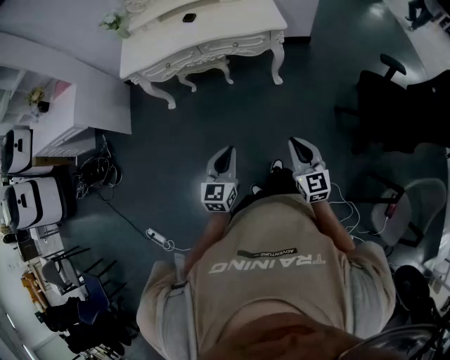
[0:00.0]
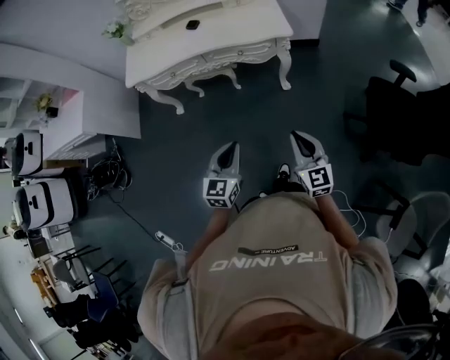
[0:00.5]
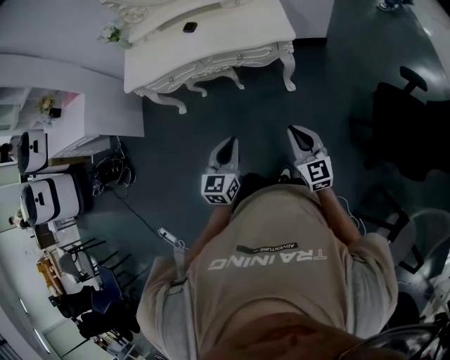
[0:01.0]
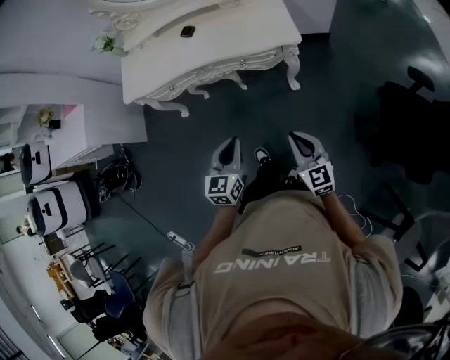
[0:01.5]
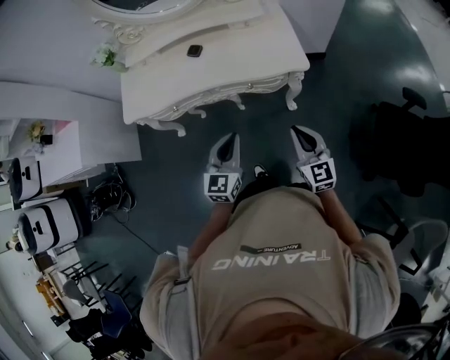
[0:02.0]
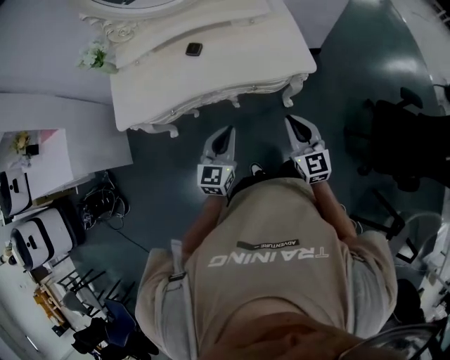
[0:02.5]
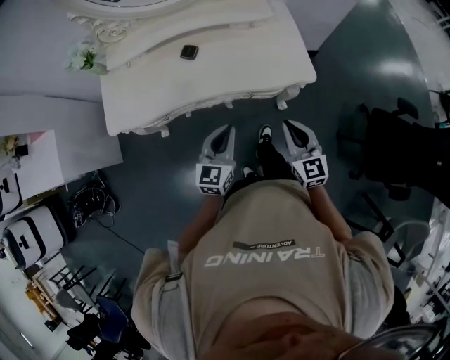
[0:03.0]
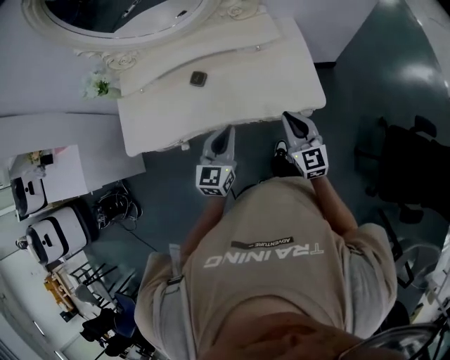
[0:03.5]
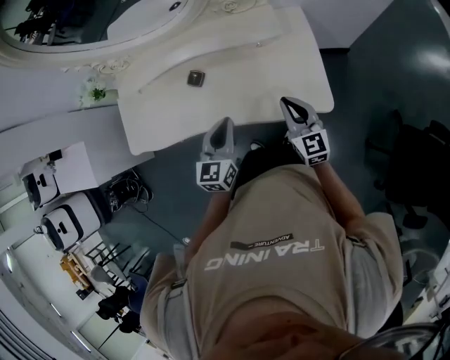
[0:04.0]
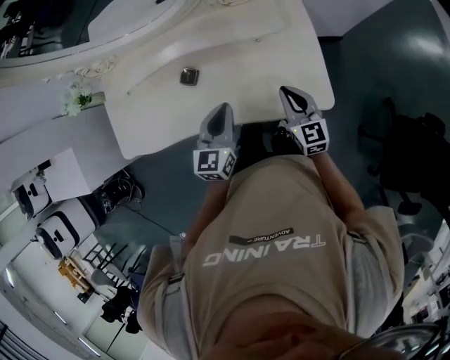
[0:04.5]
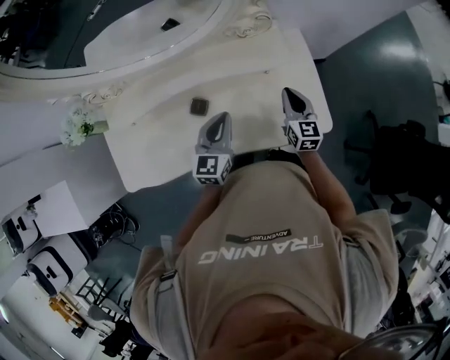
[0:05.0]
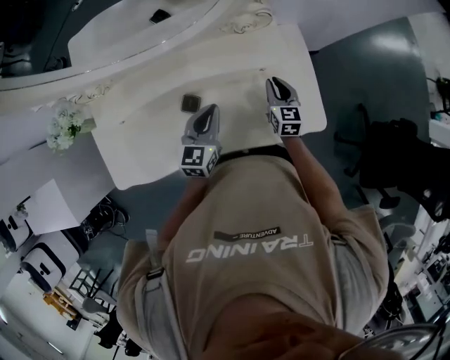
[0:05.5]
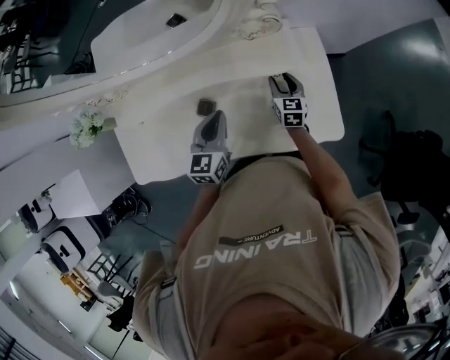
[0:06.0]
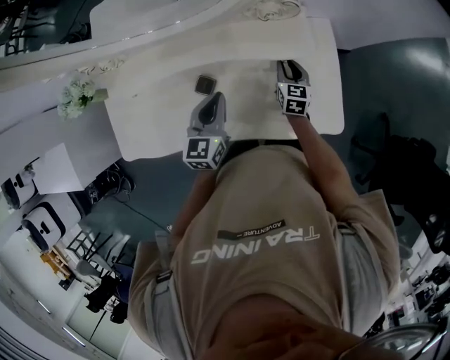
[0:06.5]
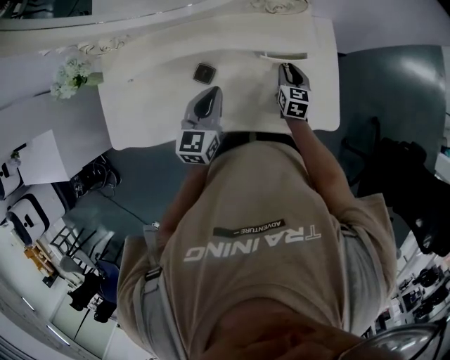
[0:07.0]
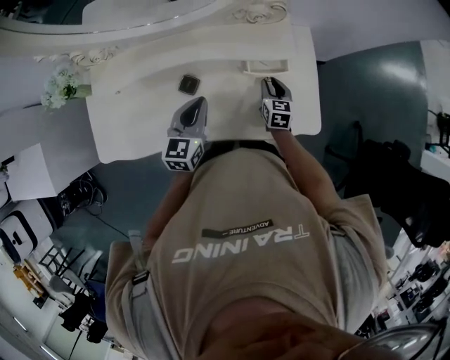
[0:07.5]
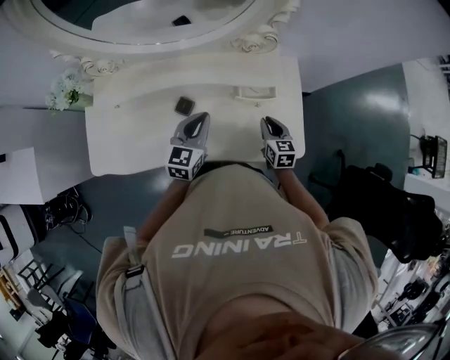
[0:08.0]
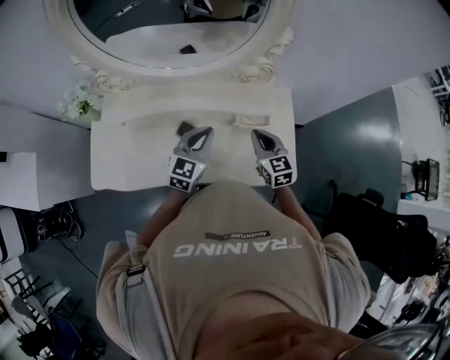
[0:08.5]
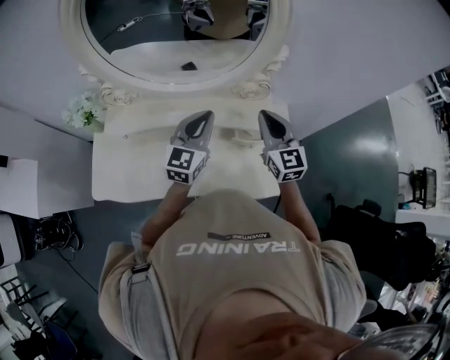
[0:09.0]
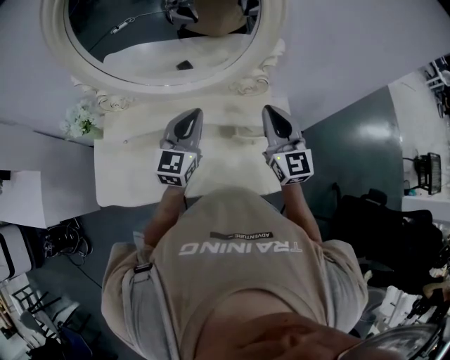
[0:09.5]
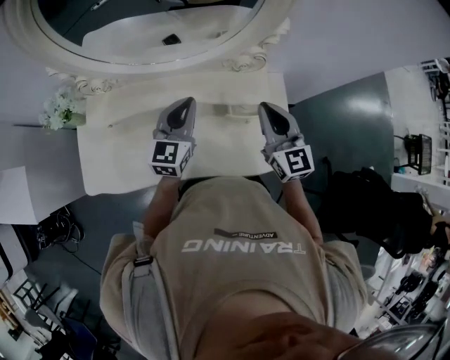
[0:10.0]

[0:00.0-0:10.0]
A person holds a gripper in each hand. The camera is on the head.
0:00.0 to 0:02.0: Both grippers move forward, some 40 cm.
0:02.0 to 0:04.0: The two grippers go about 35 cm forward.
0:04.0 to 0:06.0: The right gripper is displaced forward and downward by roughly 25 cm, turns by approximately 30 degrees, and opens its fingers, while the left gripper is displaced forward and to the left by approximately 20 cm.
0:06.0 to 0:08.0: The right gripper travels backward and upward by some 15 cm, and closes up. The left gripper shifts by about 5 cm.
0:08.0 to 0:10.0: The right gripper shifts roughly 25 cm upward, and turns by some 30 degrees, while the left gripper travels upward and forward by about 15 cm.

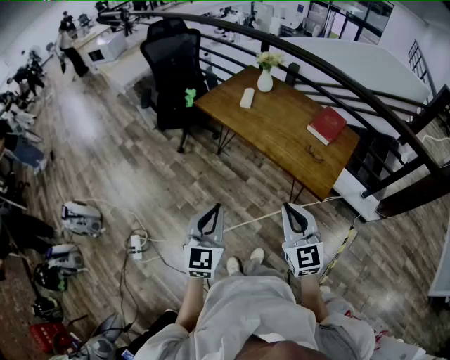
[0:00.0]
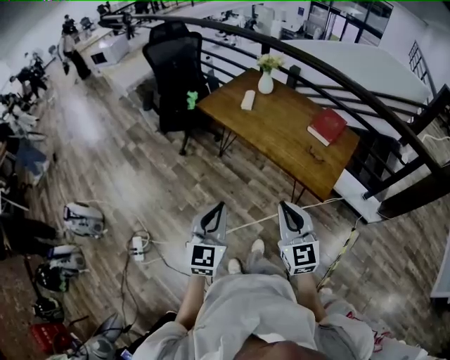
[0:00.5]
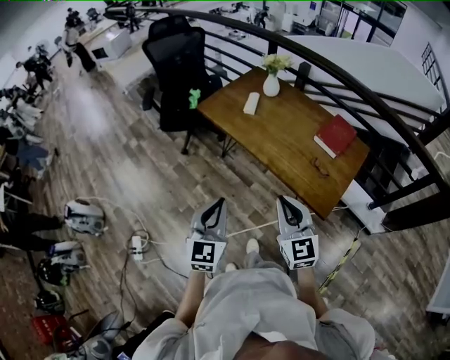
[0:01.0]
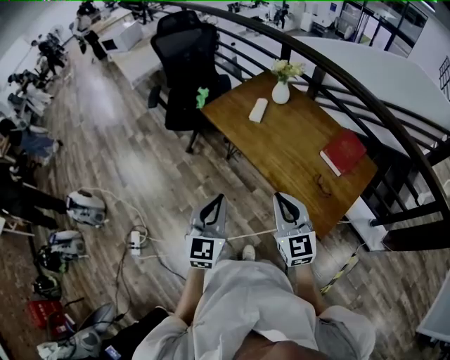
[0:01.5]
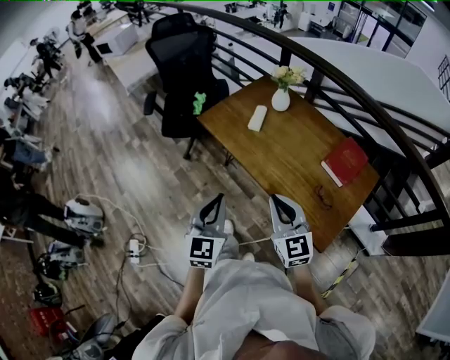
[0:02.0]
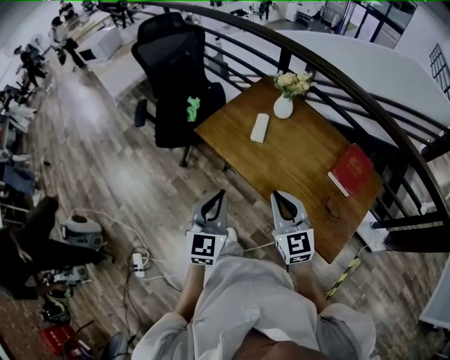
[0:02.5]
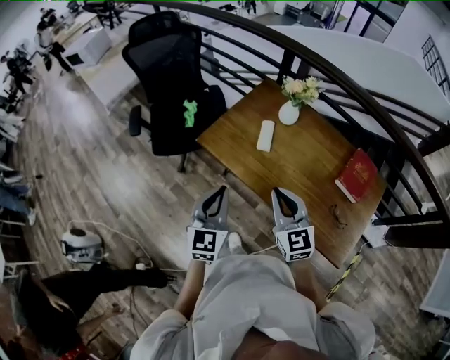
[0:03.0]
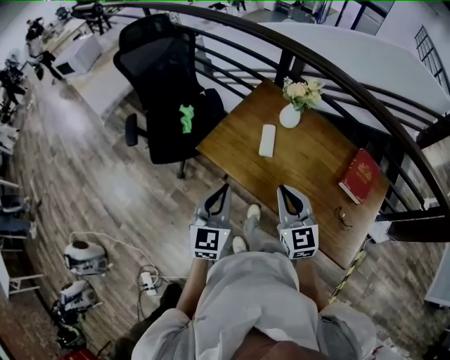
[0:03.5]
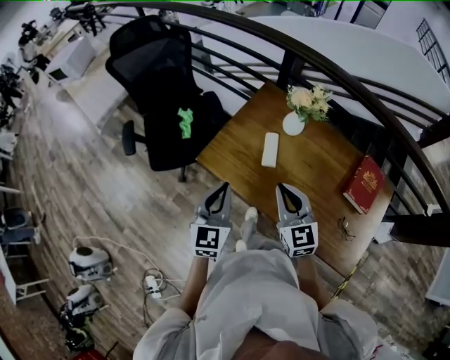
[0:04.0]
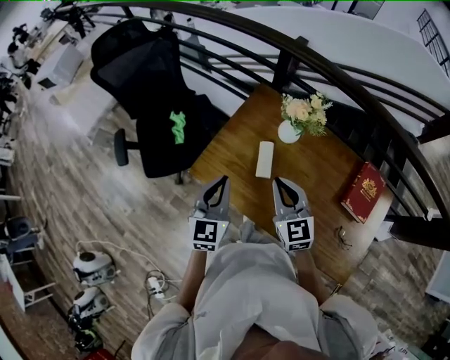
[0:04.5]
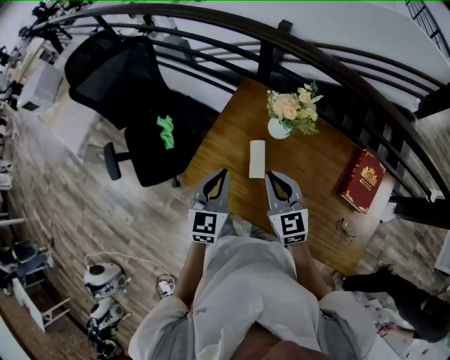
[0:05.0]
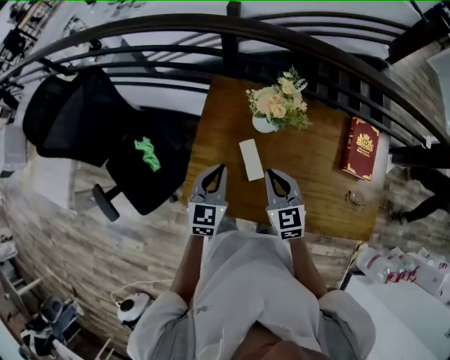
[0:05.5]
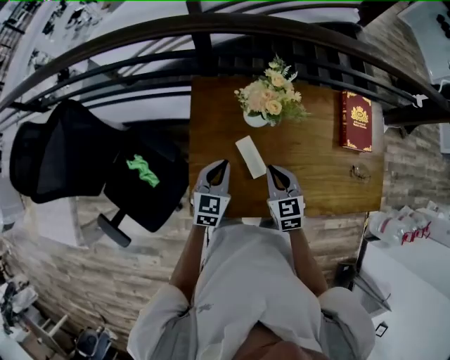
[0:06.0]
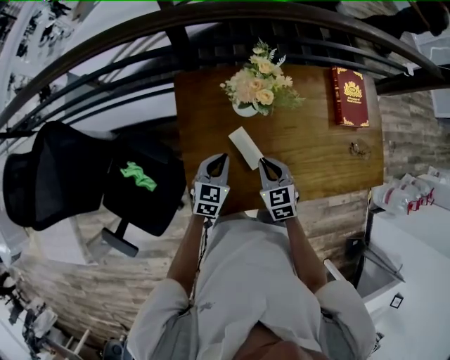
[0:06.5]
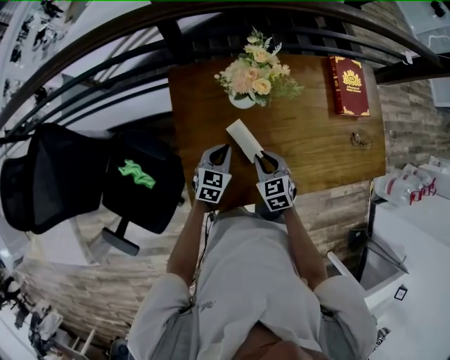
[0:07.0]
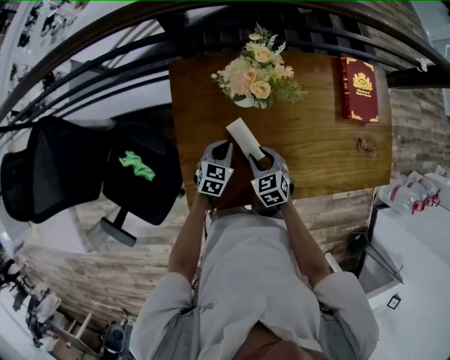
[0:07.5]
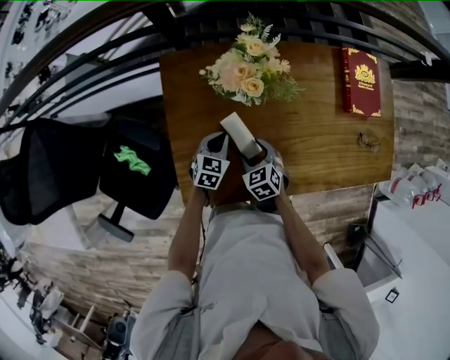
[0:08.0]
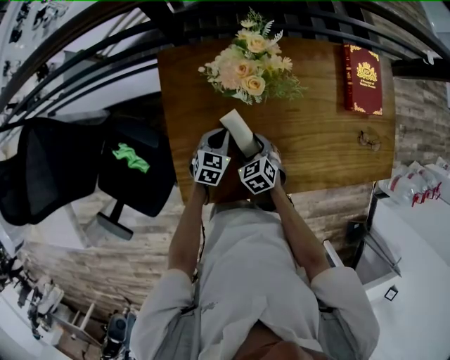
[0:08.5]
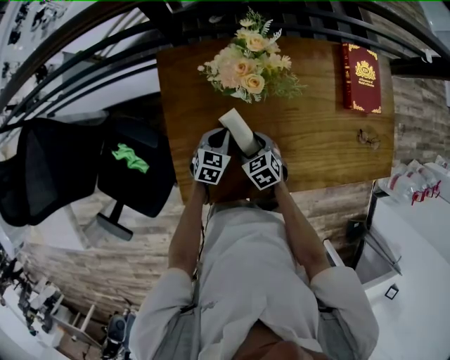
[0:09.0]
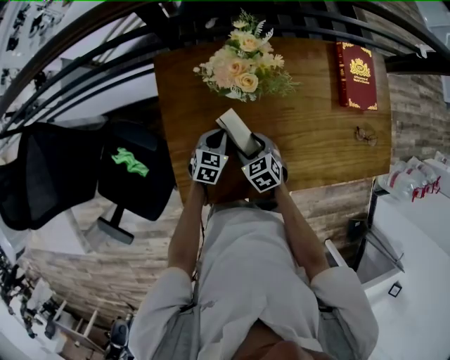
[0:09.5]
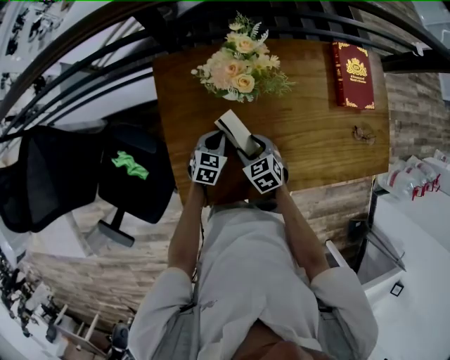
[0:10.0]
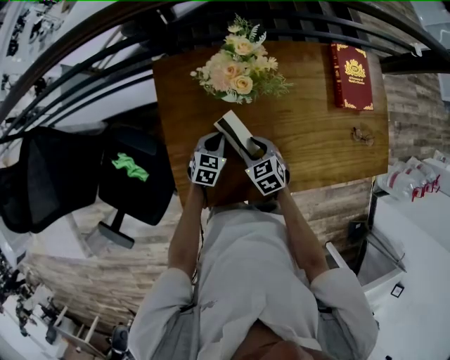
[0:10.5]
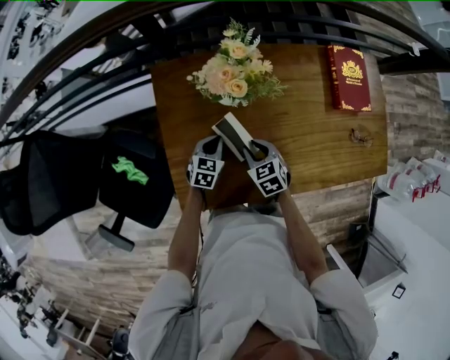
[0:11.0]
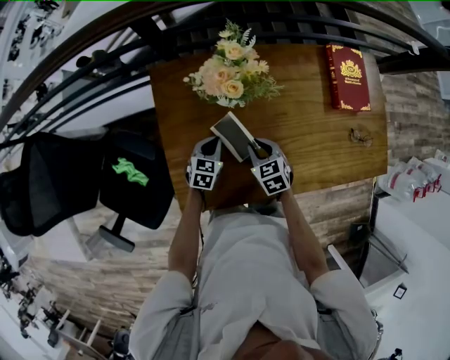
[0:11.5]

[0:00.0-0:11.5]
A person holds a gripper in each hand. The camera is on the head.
0:00.0 to 0:02.0: Both grippers travel together forward, about 25 cm.
0:02.0 to 0:04.0: The two grippers go about 30 cm forward.
0:04.0 to 0:06.0: The left gripper moves roughly 30 cm, and swivels approximately 40 degrees, while the right gripper ends up about 20 cm from where it was, and rotates approximately 40 degrees.
0:06.0 to 0:07.5: Both grippers move downward, approximately 15 cm. The right gripper opens its fingers.
0:07.5 to 0:09.5: The right gripper opens its fingers.
0:09.5 to 0:11.5: The right gripper moves approximately 5 cm, and closes up.

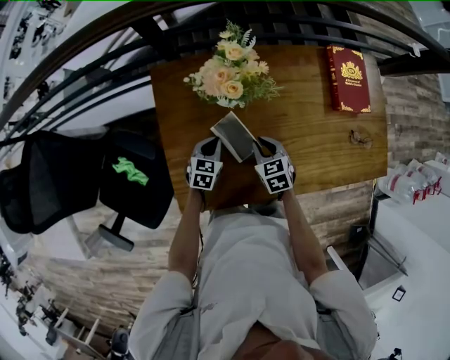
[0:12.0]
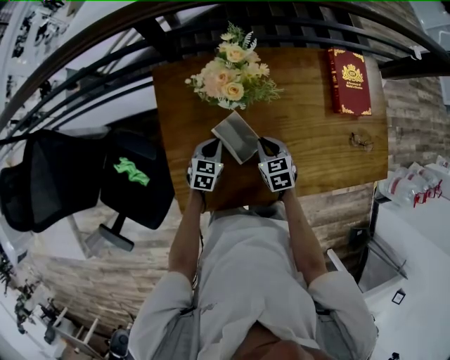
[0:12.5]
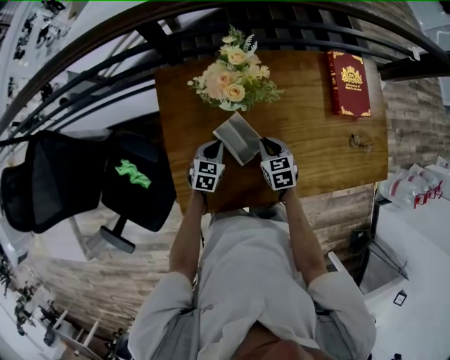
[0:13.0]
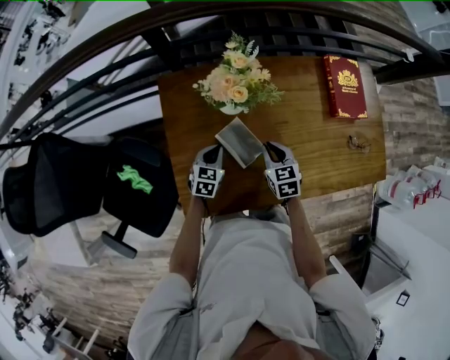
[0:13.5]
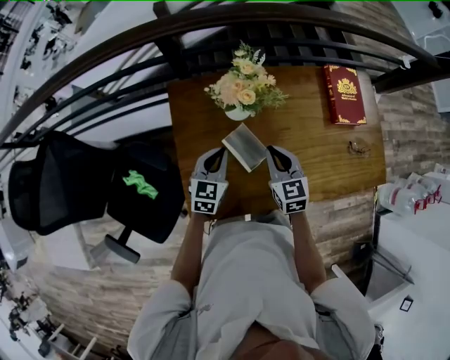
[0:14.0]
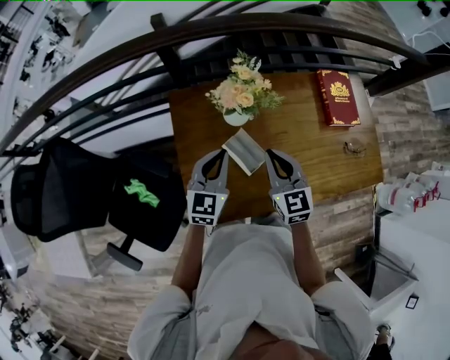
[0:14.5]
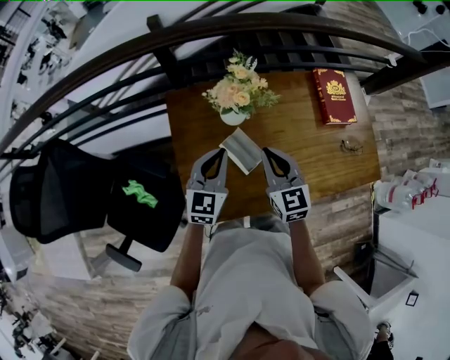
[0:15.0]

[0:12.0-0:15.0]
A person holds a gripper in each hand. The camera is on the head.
0:12.0 to 0:13.5: There are only small adjustments of the grippers.
0:13.5 to 0:15.0: Both grippers move upward, some 20 cm. The left gripper turns by some 30 degrees, while the right gripper swivels about 30 degrees.

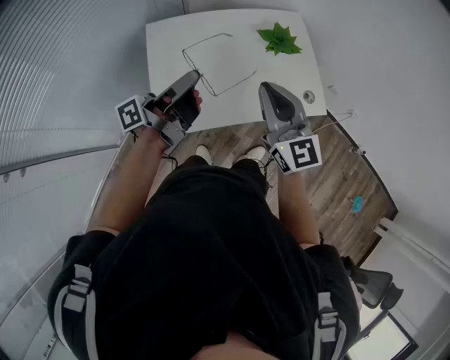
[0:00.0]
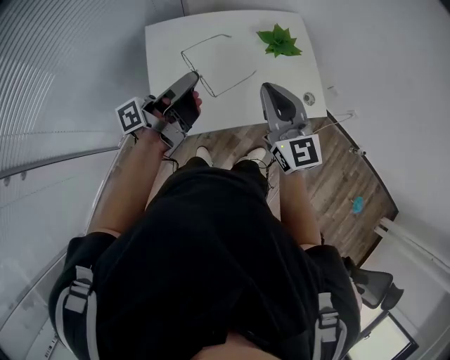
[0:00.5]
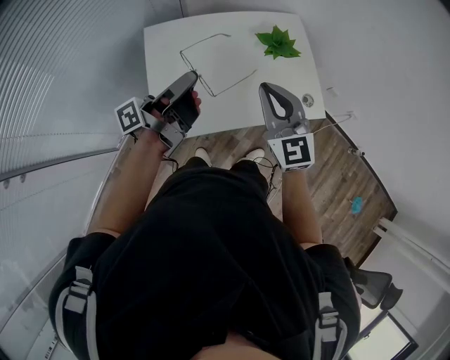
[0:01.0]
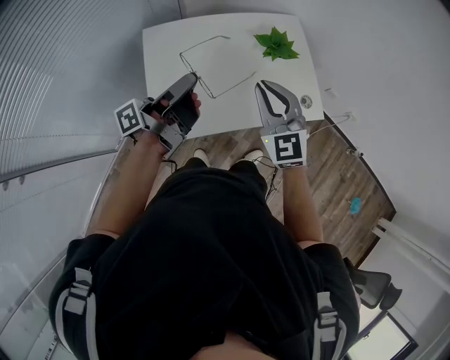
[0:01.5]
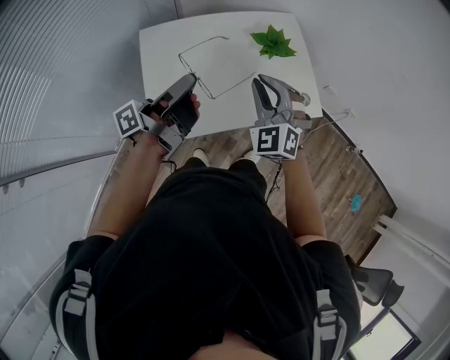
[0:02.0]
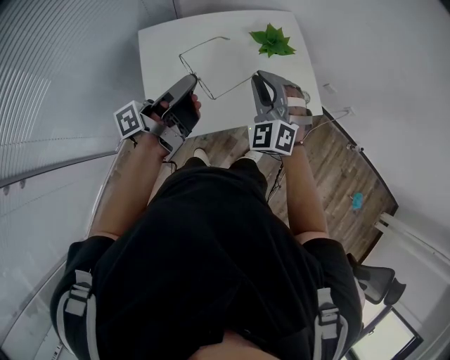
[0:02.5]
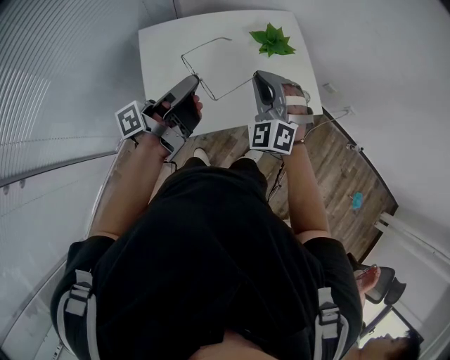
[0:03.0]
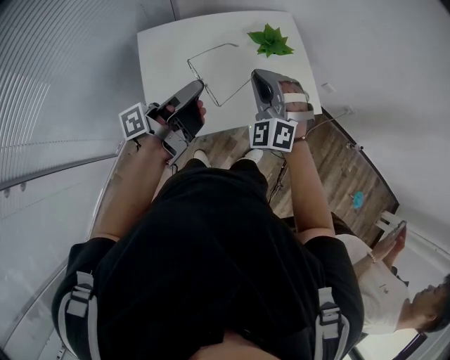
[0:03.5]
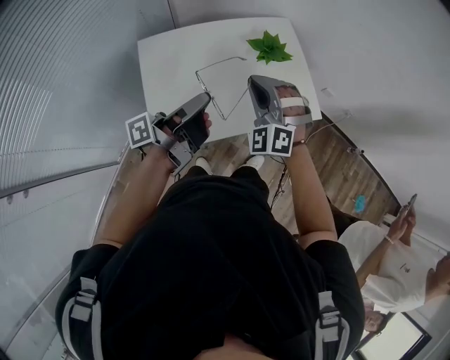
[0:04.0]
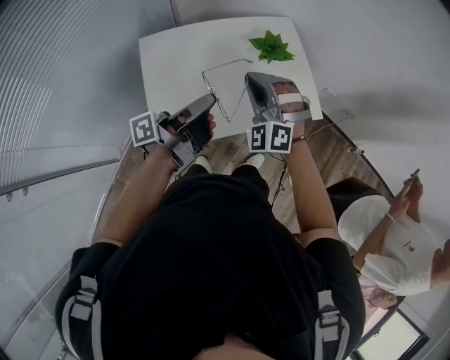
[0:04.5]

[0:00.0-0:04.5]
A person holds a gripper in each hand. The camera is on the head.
0:00.0 to 0:02.0: The right gripper goes some 5 cm downward, and twists about 40 degrees counterclockwise, seen from behind.
0:02.0 to 0:04.5: The right gripper turns by roughly 20 degrees.
